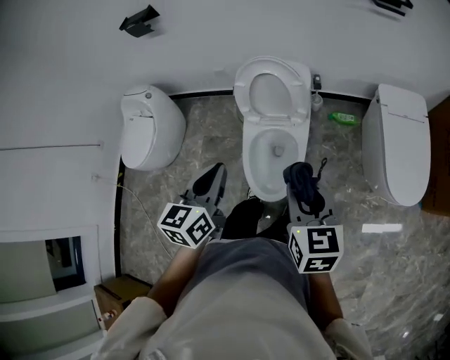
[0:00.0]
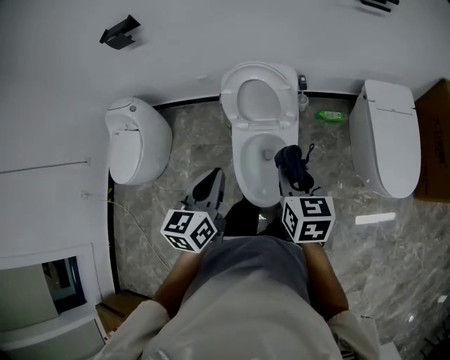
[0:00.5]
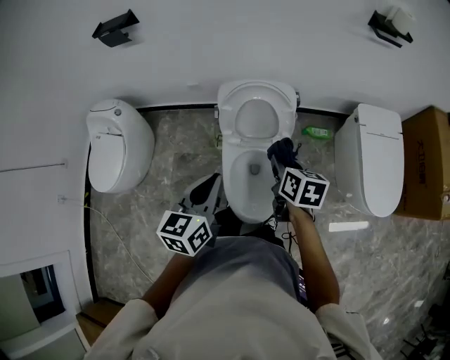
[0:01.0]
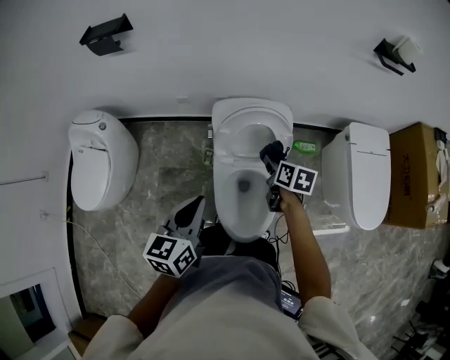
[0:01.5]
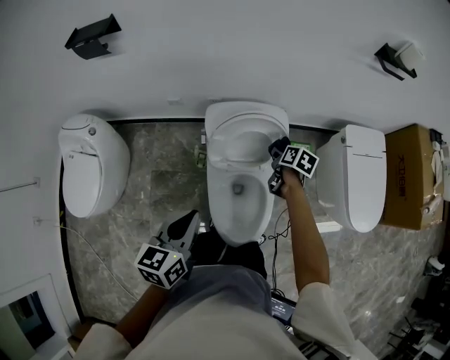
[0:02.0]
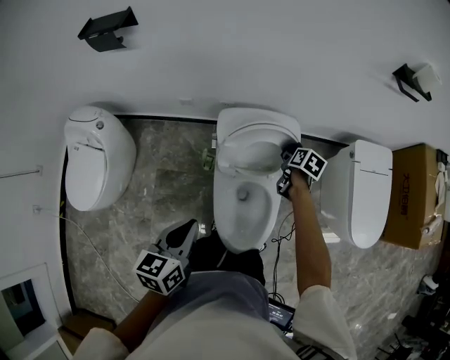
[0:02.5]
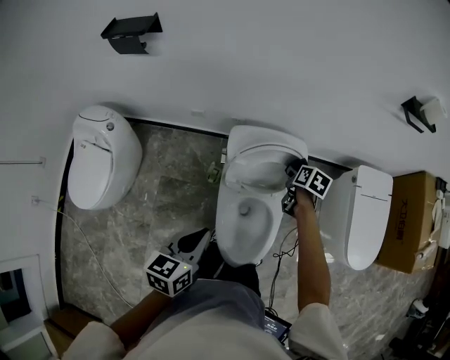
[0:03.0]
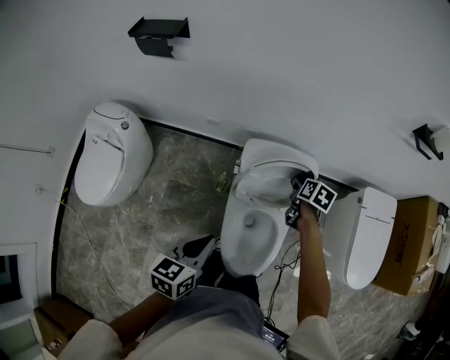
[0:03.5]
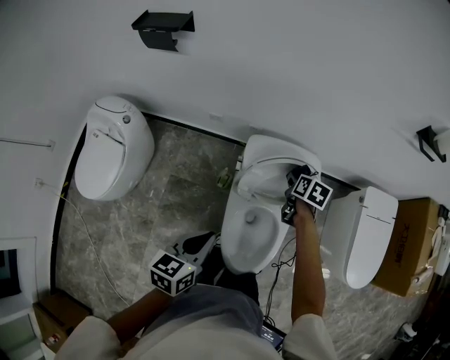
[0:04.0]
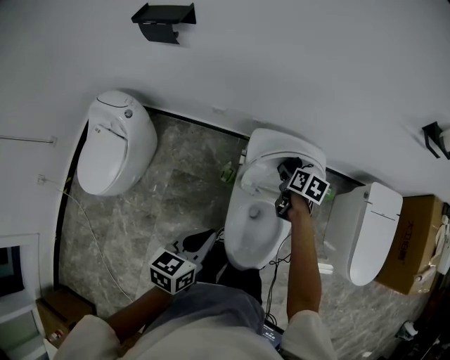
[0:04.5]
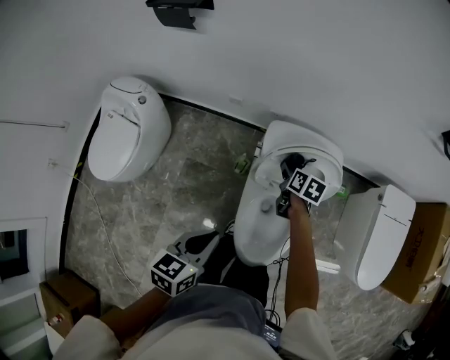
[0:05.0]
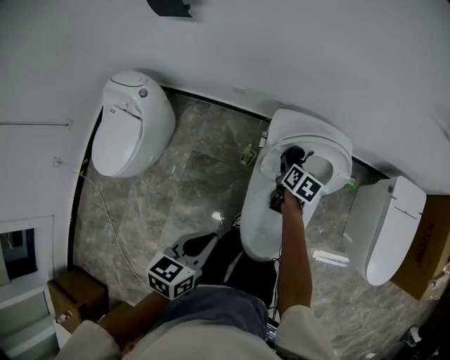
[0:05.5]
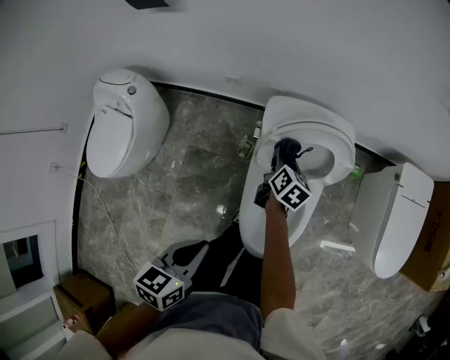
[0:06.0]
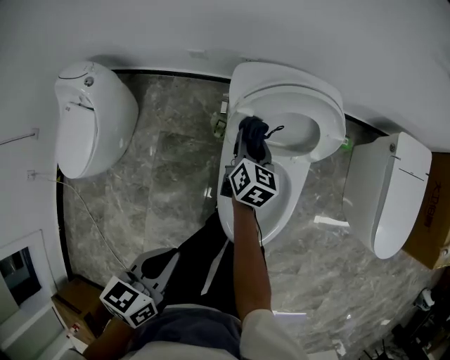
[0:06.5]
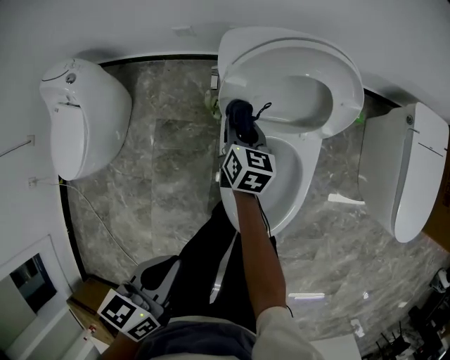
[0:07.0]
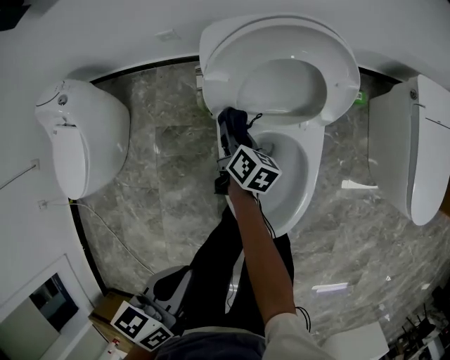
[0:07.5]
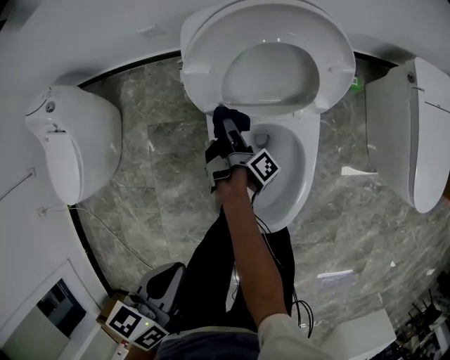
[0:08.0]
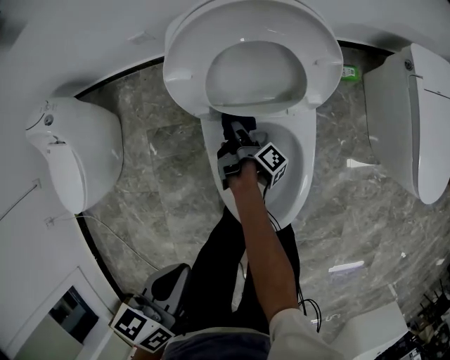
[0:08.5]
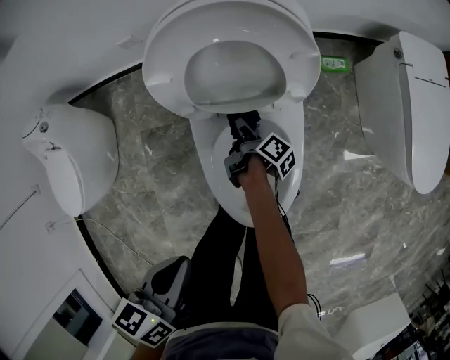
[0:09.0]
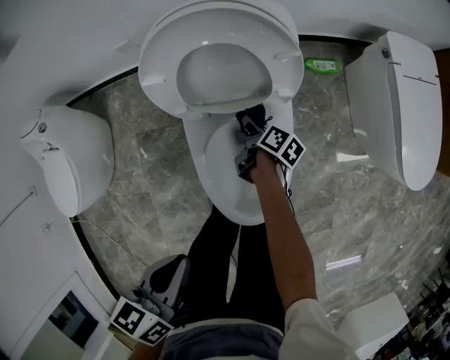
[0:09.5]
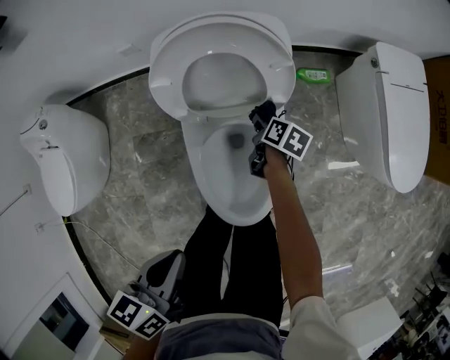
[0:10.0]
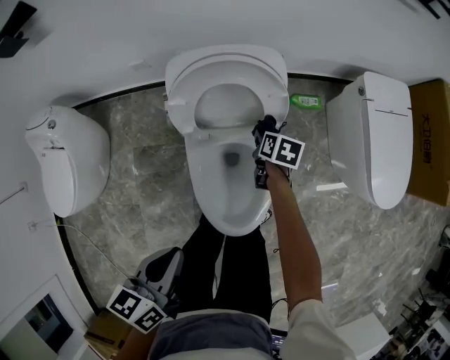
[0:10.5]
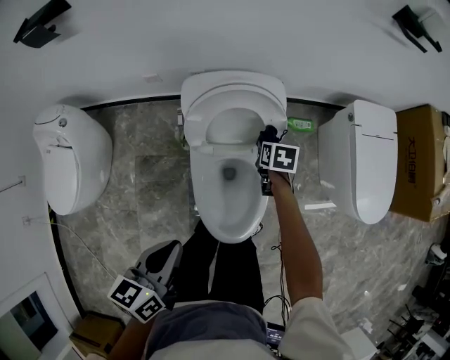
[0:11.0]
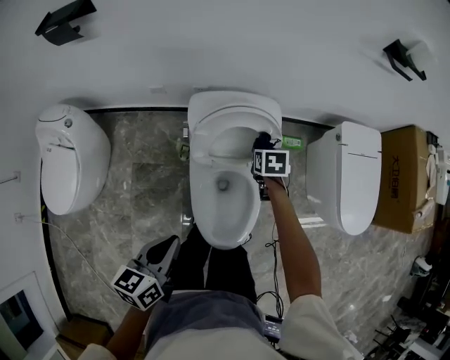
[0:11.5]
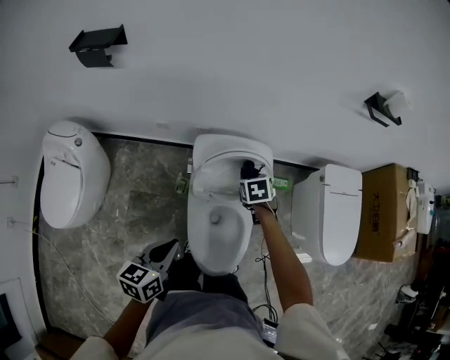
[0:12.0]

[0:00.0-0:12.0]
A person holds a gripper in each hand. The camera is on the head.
0:00.0 to 0:02.0: The left gripper heads forward, to the left and downward, covering approximately 20 cm. The right gripper heads forward and downward, covering some 50 cm, and swivels approximately 40 degrees.
0:02.0 to 0:04.0: The right gripper is displaced to the left and forward by some 10 cm, while the left gripper shifts by roughly 5 cm.
0:04.0 to 0:06.0: The left gripper is displaced backward and downward by approximately 10 cm, while the right gripper moves to the left and downward, approximately 15 cm, and rotates roughly 20 degrees.
0:06.0 to 0:08.0: The left gripper goes roughly 10 cm downward. The right gripper goes approximately 20 cm downward, and twists roughly 80 degrees clockwise, seen from behind.
0:08.0 to 0:10.0: The left gripper is displaced to the right by roughly 5 cm. Meanwhile the right gripper travels to the right by roughly 20 cm, and rolls counterclockwise, seen from behind, by approximately 60 degrees.
0:10.0 to 0:12.0: The right gripper travels upward by approximately 30 cm, and twists about 60 degrees counterclockwise, seen from behind. The left gripper travels upward, to the left and forward by roughly 15 cm.

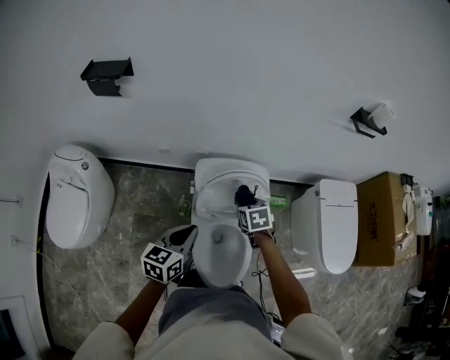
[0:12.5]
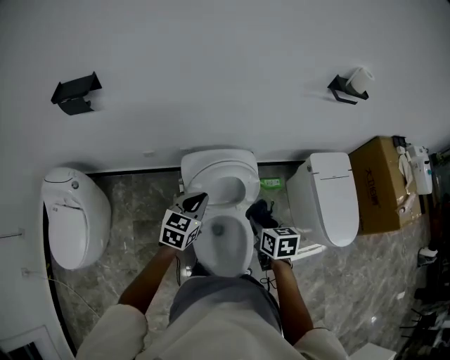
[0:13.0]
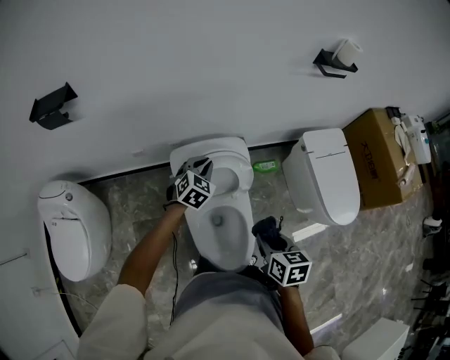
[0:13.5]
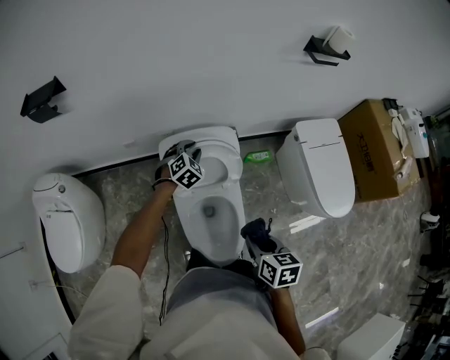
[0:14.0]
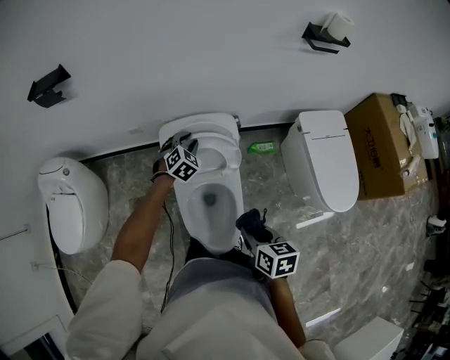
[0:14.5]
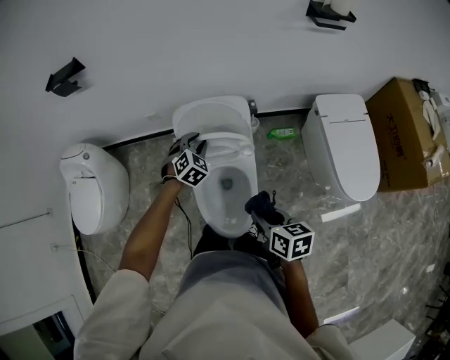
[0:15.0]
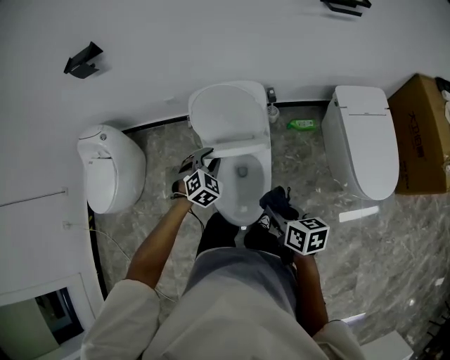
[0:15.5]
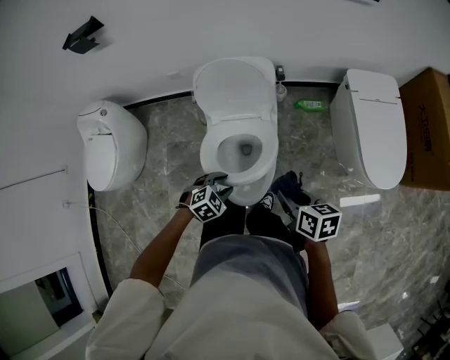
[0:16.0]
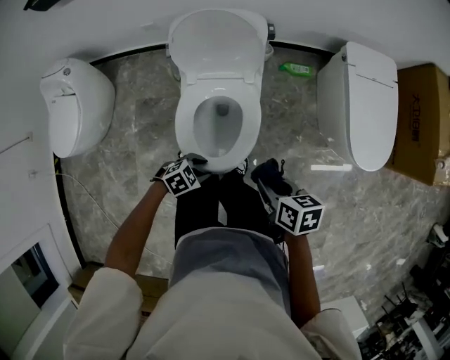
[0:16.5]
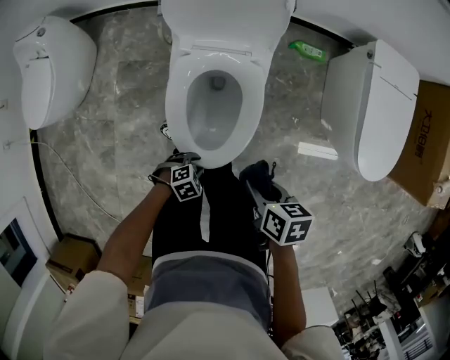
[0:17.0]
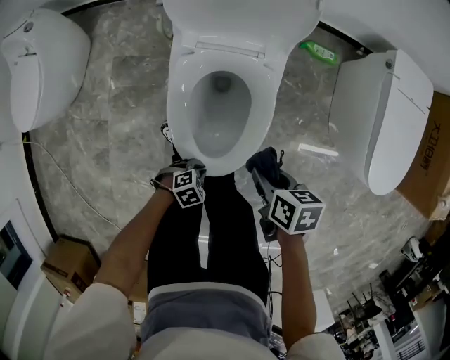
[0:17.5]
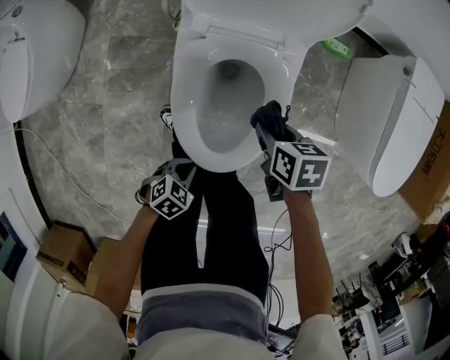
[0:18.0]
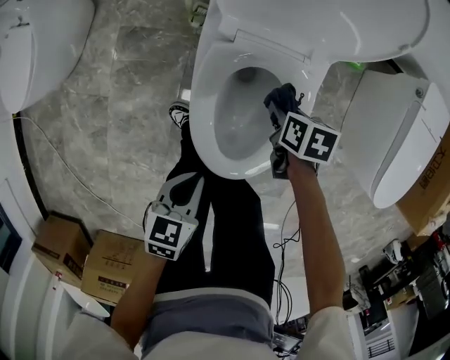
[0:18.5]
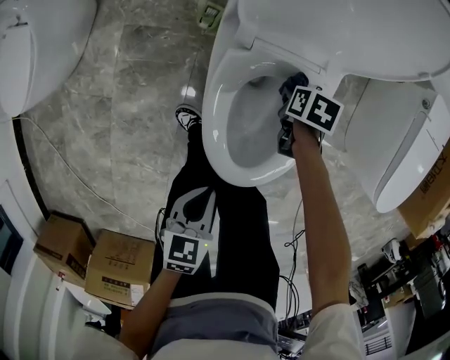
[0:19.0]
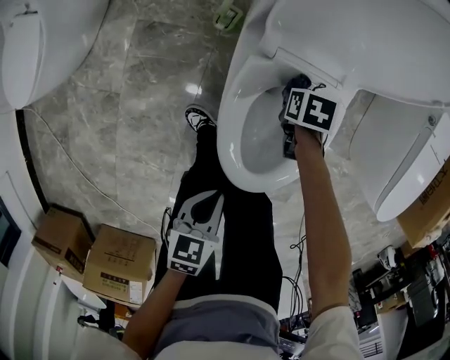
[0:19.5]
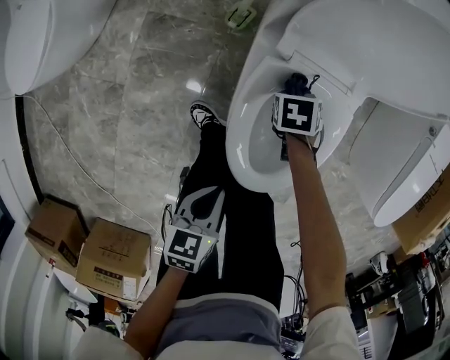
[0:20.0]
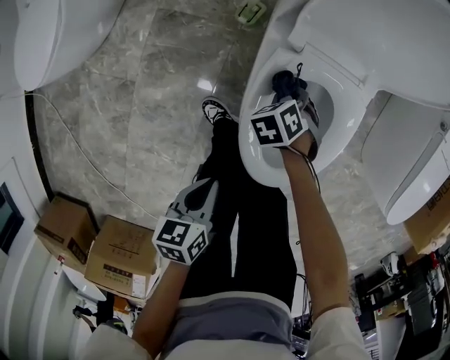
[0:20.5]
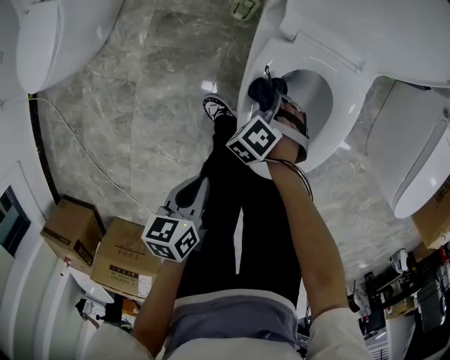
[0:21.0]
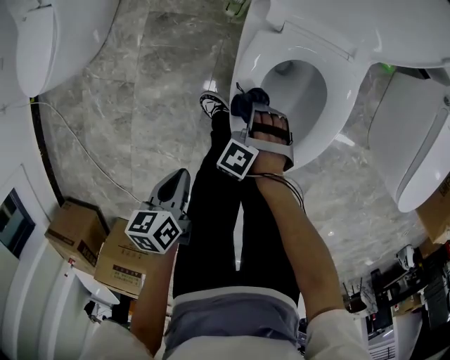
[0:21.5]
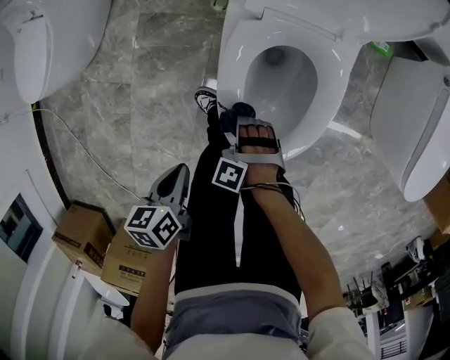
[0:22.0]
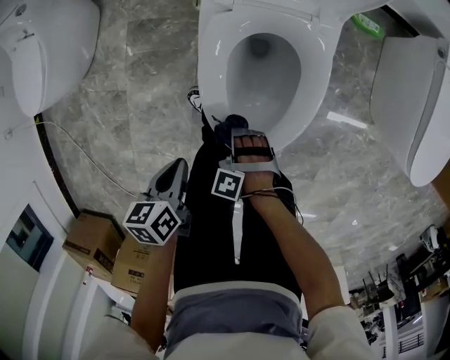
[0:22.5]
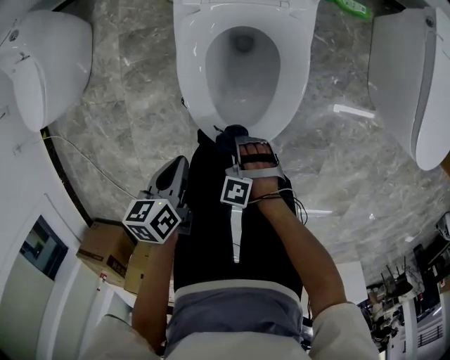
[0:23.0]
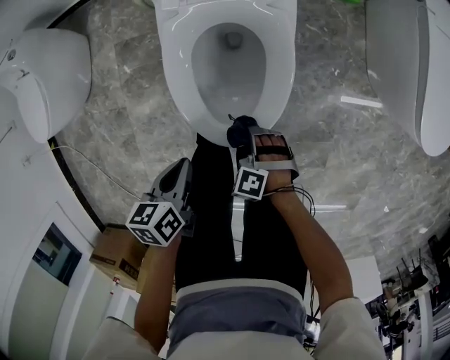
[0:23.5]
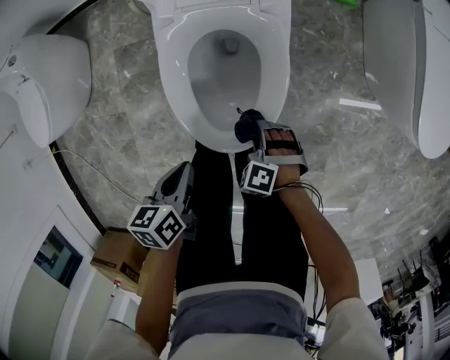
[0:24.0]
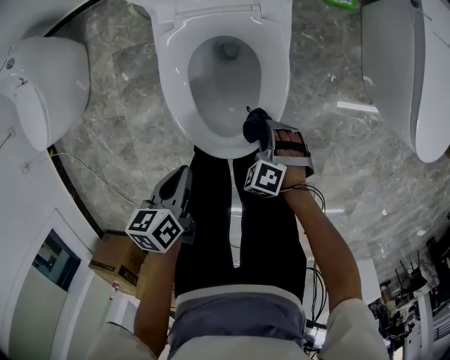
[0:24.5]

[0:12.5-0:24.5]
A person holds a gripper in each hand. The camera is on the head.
0:12.5 to 0:14.5: The left gripper moves forward, to the right and downward, approximately 25 cm, twists about 60 degrees clockwise, seen from behind, and opens. Meanwhile the right gripper is displaced backward and to the right by roughly 30 cm, and changes its angle by about 30 degrees.
0:14.5 to 0:16.5: The right gripper ends up roughly 15 cm from where it was. Meanwhile the left gripper shifts by some 50 cm, and changes its angle by some 50 degrees.
0:16.5 to 0:18.5: The right gripper moves downward, about 30 cm, and rotates approximately 20 degrees. Meanwhile the left gripper goes downward and returns, some 20 cm each way, rotates around the line of its fingers by approximately 50 degrees, counterclockwise from behind, and closes its fingers.
0:18.5 to 0:20.5: The left gripper shifts by some 10 cm, and changes its angle by approximately 30 degrees. Meanwhile the right gripper moves approximately 15 cm, and rolls counterclockwise, seen from behind, by some 50 degrees.
0:20.5 to 0:22.5: The right gripper ends up approximately 25 cm from where it was, and rotates around the line of its fingers by roughly 40 degrees, counterclockwise from behind.
0:22.5 to 0:24.5: The right gripper heads to the right, covering approximately 15 cm, and swivels roughly 20 degrees; the left gripper heads to the right, covering roughly 10 cm.

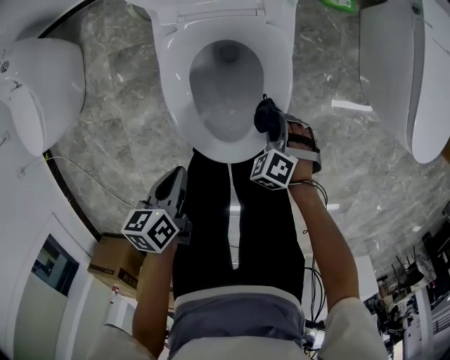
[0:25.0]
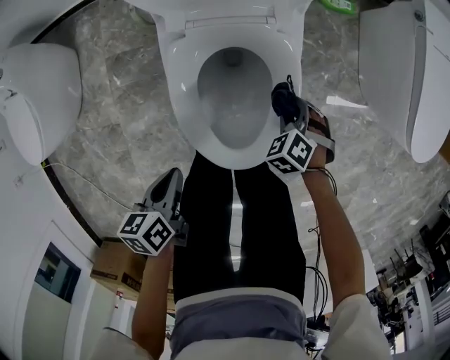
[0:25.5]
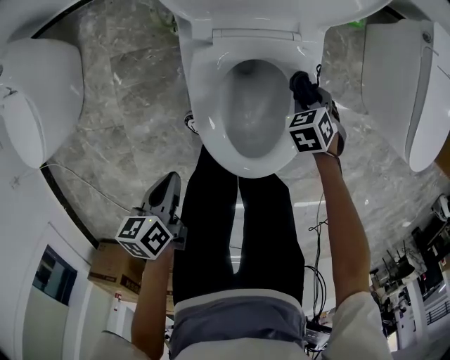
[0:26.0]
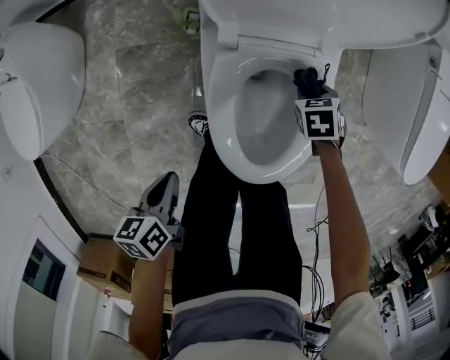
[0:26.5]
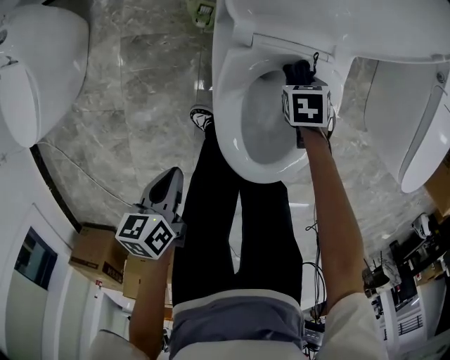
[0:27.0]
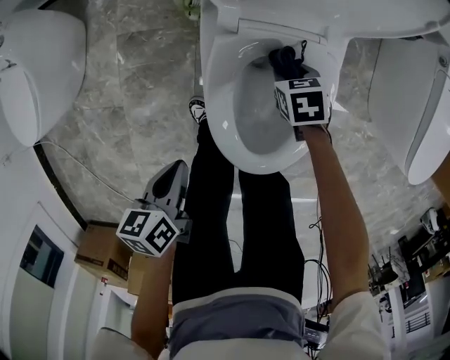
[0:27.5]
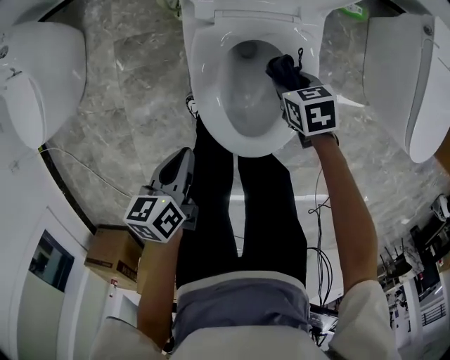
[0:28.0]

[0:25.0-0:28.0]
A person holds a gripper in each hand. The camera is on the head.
0:25.0 to 0:26.5: The right gripper shifts by some 20 cm, and rolls clockwise, seen from behind, by roughly 40 degrees, while the left gripper changes place by roughly 15 cm.
0:26.5 to 0:28.0: The left gripper changes place by approximately 10 cm, while the right gripper ends up about 10 cm from where it was, and swivels roughly 20 degrees.
